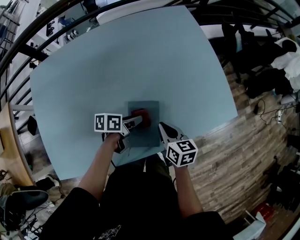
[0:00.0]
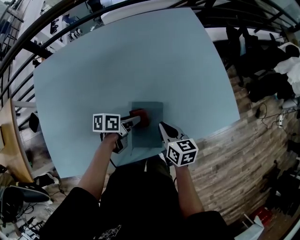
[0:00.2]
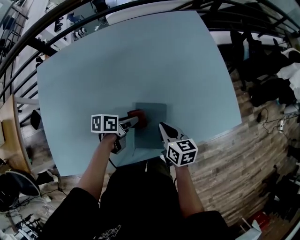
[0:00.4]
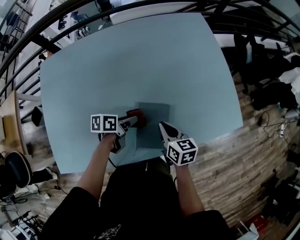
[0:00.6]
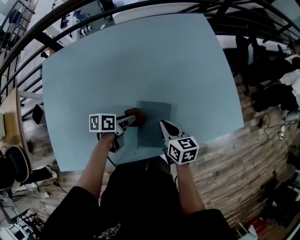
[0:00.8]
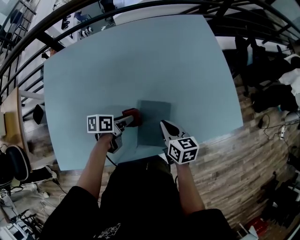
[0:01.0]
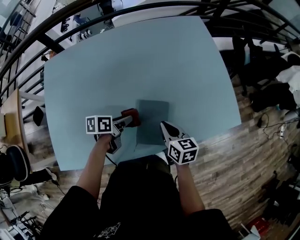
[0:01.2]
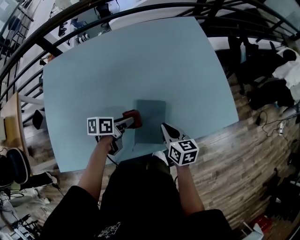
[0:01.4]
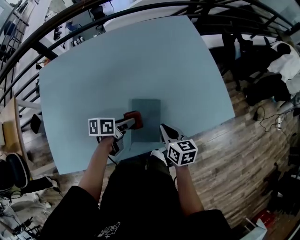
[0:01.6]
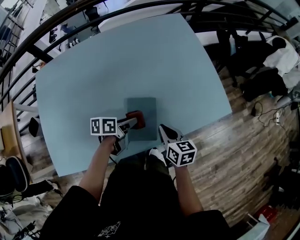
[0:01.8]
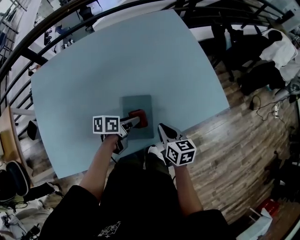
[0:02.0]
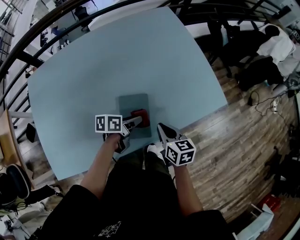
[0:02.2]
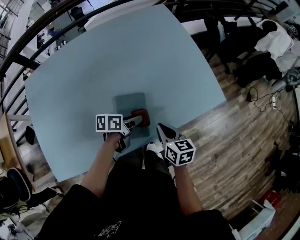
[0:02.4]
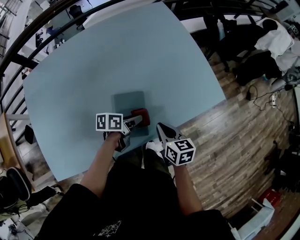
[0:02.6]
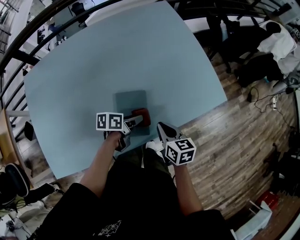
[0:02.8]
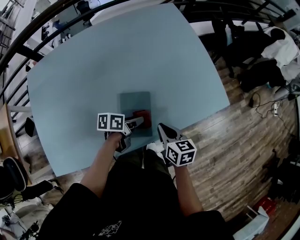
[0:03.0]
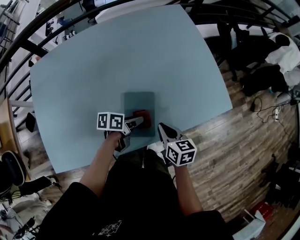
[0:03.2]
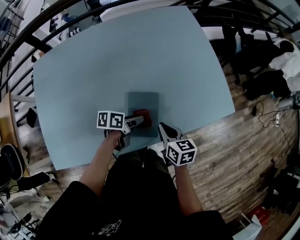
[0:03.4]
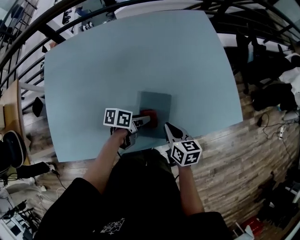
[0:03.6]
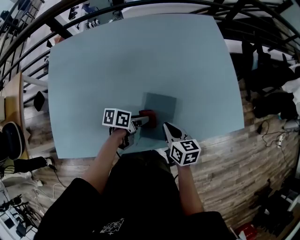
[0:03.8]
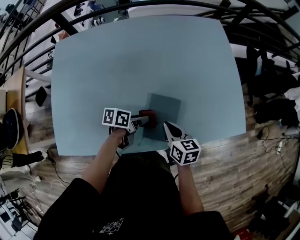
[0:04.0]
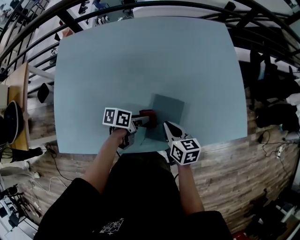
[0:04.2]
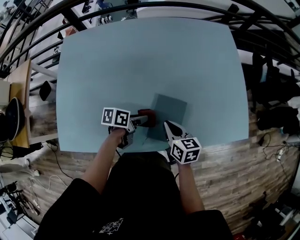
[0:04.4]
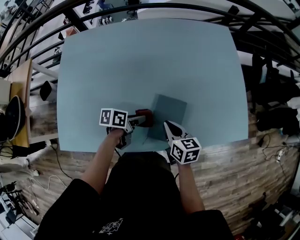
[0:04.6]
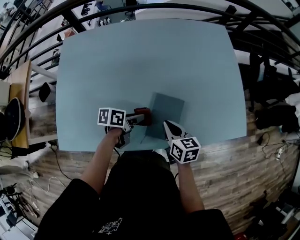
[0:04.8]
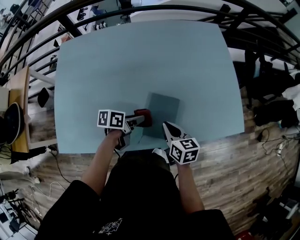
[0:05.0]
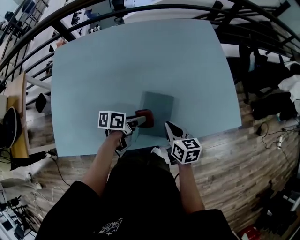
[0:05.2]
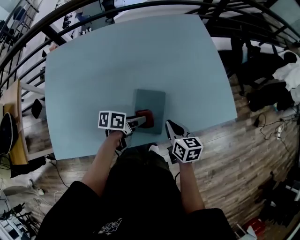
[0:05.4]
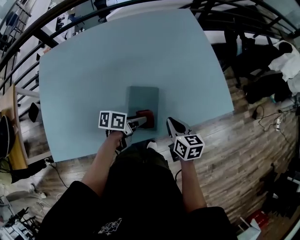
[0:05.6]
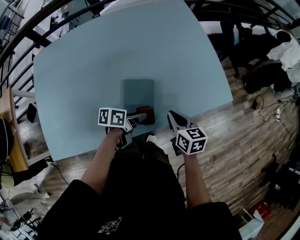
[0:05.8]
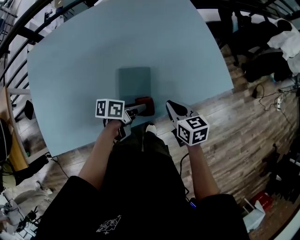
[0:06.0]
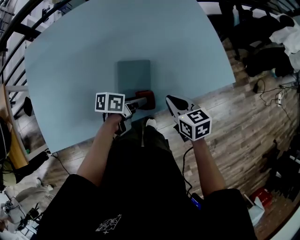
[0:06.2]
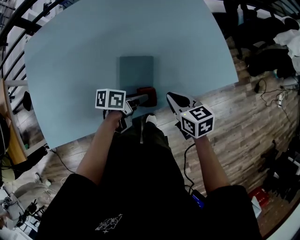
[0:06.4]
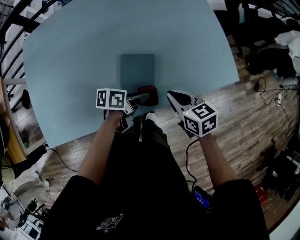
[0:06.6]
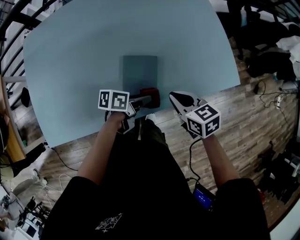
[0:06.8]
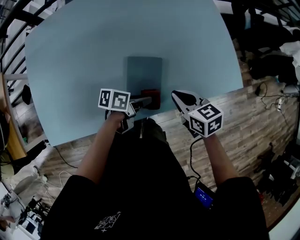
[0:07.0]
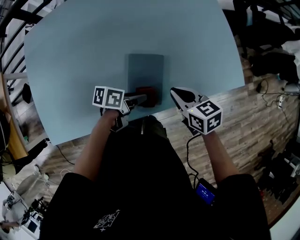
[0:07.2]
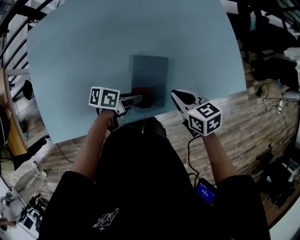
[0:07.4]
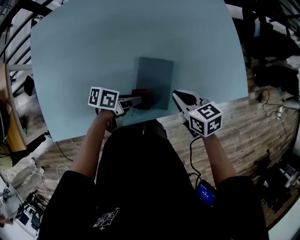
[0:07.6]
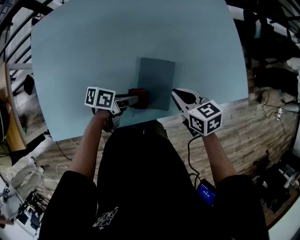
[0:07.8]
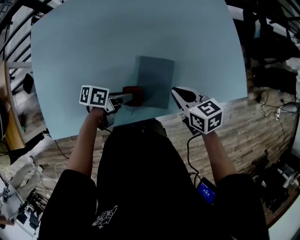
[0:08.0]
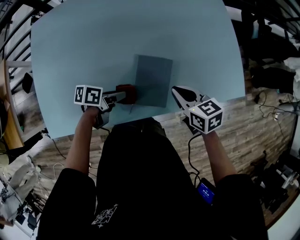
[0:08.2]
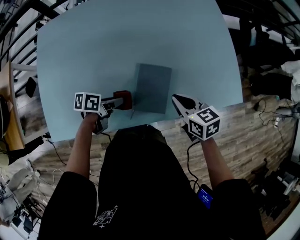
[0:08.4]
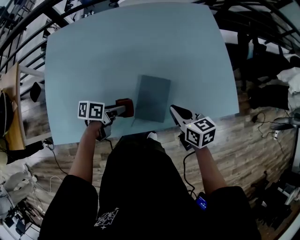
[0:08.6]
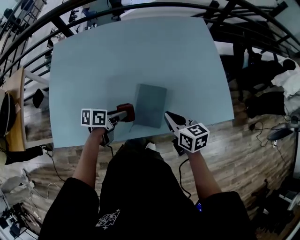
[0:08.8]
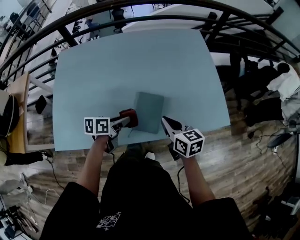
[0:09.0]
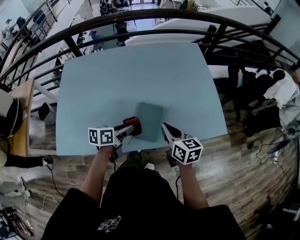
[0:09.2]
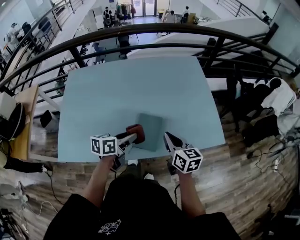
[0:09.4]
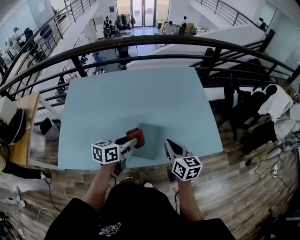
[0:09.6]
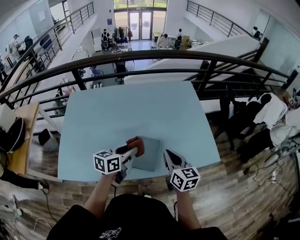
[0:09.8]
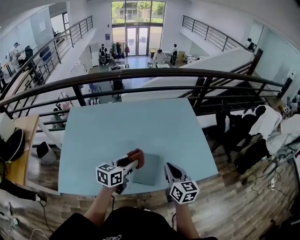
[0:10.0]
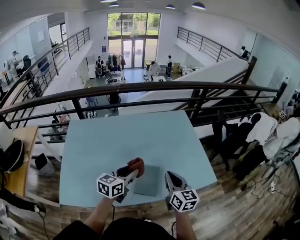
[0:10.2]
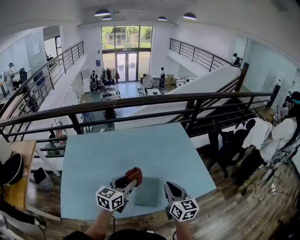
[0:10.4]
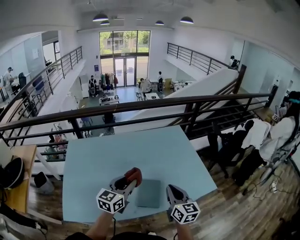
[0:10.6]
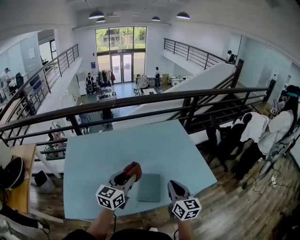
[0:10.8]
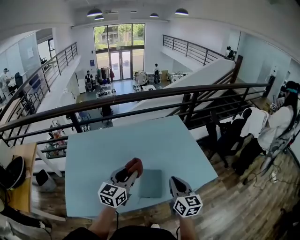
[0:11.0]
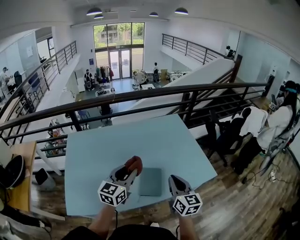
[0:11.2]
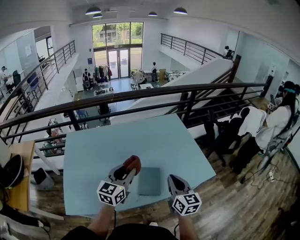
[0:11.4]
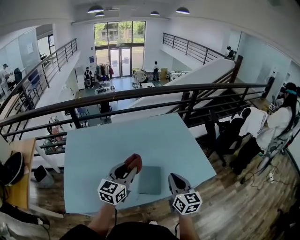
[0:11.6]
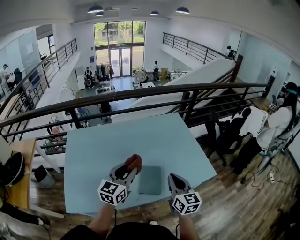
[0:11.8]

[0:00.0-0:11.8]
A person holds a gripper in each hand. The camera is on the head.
0:00.0 to 0:01.4: The left gripper moves to the left, some 5 cm.
0:01.4 to 0:03.0: The right gripper goes about 5 cm to the right; the left gripper is displaced to the right by approximately 10 cm.
0:03.0 to 0:04.4: Both grippers travel together to the left, roughly 15 cm.
0:04.4 to 0:06.0: Both grippers travel together to the right, about 15 cm.
0:06.0 to 0:07.4: The left gripper moves some 5 cm. Meanwhile the right gripper changes place by some 5 cm.
0:07.4 to 0:08.8: The right gripper heads upward, covering about 5 cm. The left gripper moves some 10 cm, and changes its angle by roughly 20 degrees.
0:08.8 to 0:10.4: The grippers both shift upward by some 25 cm. The right gripper swivels approximately 30 degrees, while the left gripper rotates roughly 50 degrees.
0:10.4 to 0:11.8: The left gripper ends up roughly 5 cm from where it was.

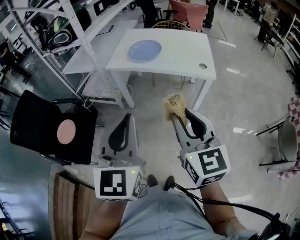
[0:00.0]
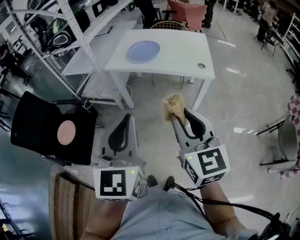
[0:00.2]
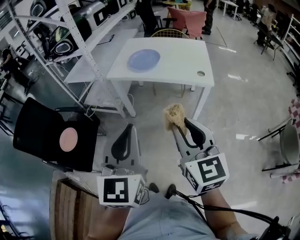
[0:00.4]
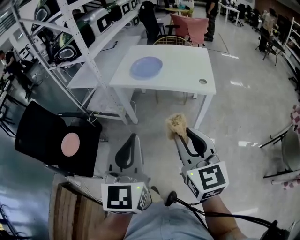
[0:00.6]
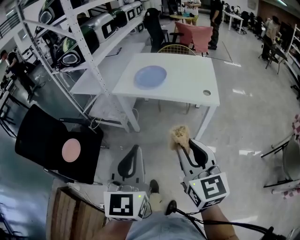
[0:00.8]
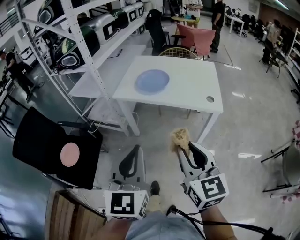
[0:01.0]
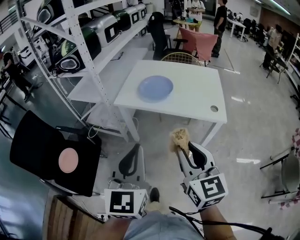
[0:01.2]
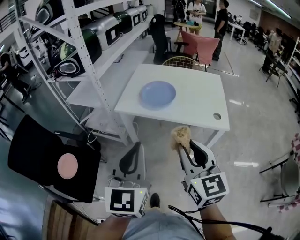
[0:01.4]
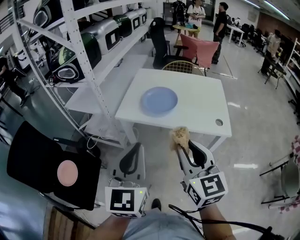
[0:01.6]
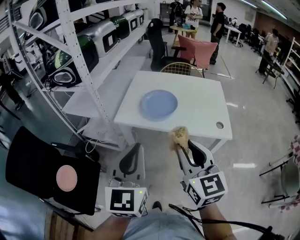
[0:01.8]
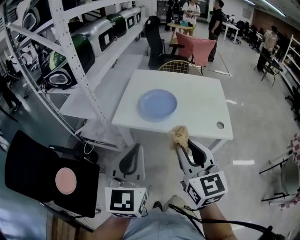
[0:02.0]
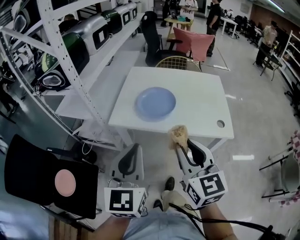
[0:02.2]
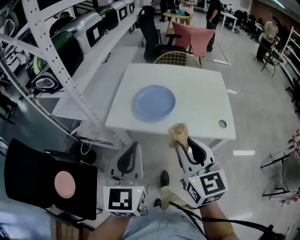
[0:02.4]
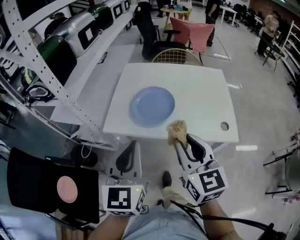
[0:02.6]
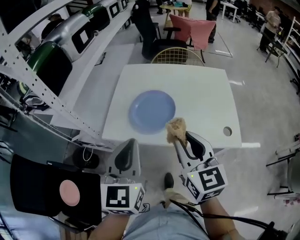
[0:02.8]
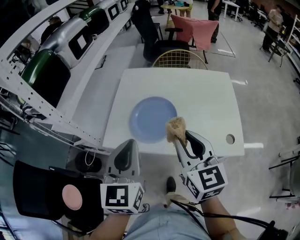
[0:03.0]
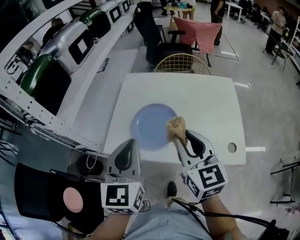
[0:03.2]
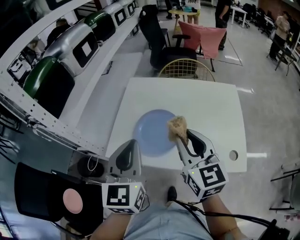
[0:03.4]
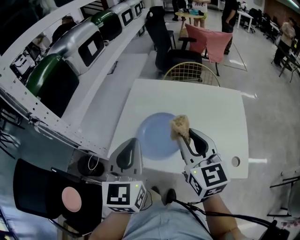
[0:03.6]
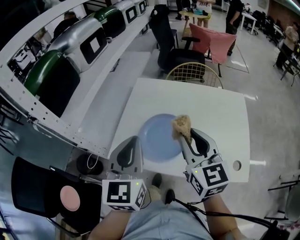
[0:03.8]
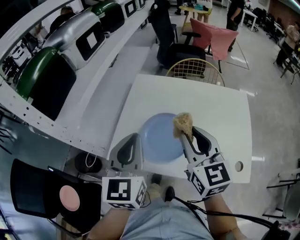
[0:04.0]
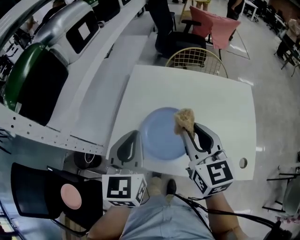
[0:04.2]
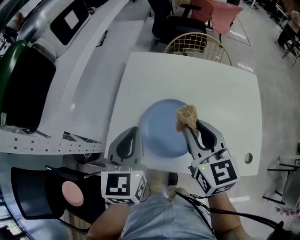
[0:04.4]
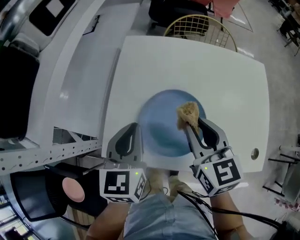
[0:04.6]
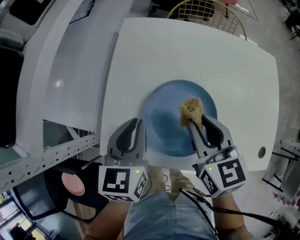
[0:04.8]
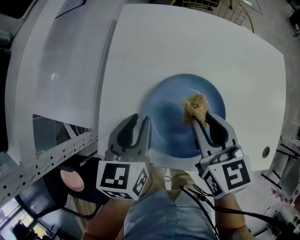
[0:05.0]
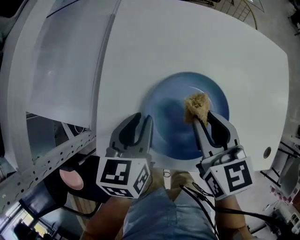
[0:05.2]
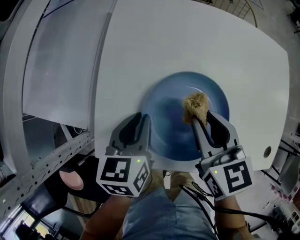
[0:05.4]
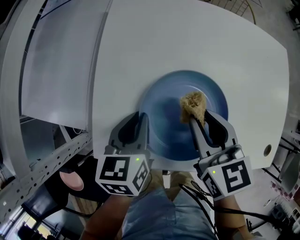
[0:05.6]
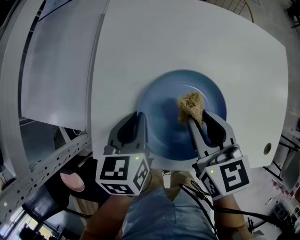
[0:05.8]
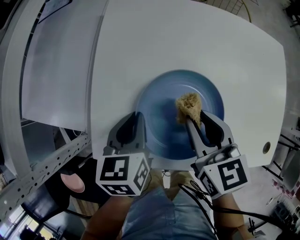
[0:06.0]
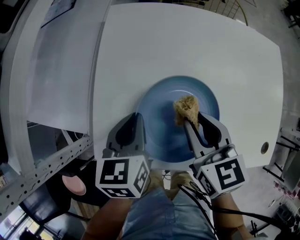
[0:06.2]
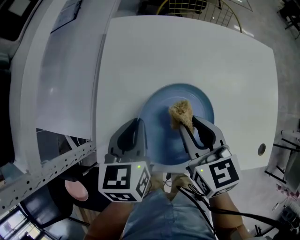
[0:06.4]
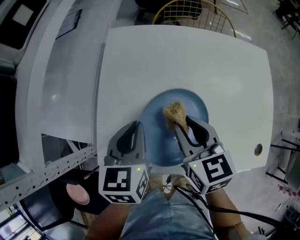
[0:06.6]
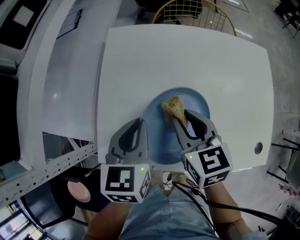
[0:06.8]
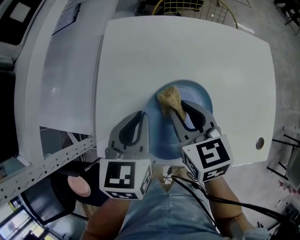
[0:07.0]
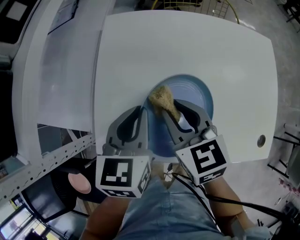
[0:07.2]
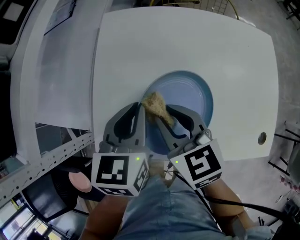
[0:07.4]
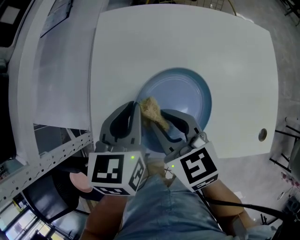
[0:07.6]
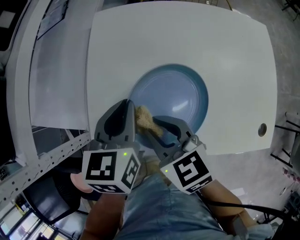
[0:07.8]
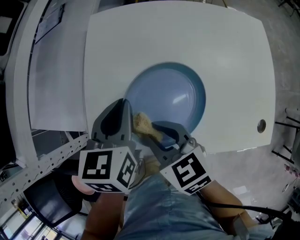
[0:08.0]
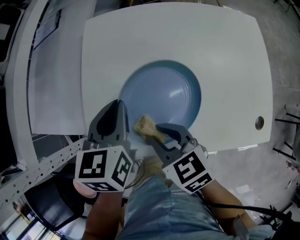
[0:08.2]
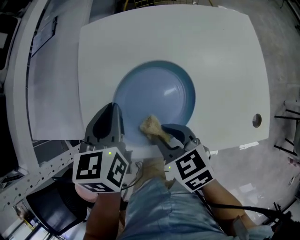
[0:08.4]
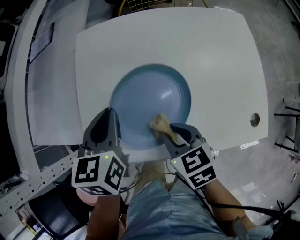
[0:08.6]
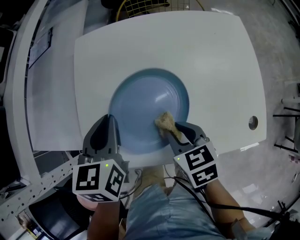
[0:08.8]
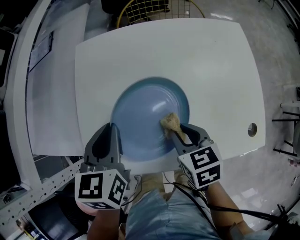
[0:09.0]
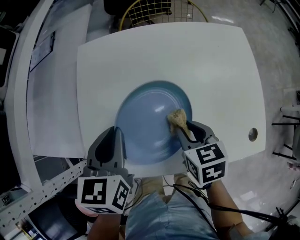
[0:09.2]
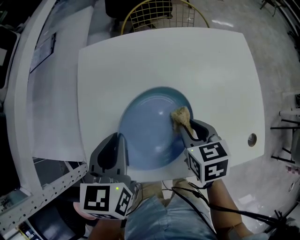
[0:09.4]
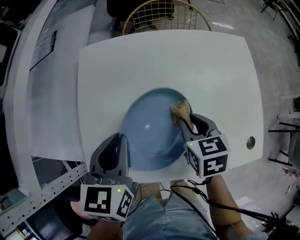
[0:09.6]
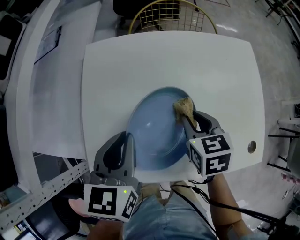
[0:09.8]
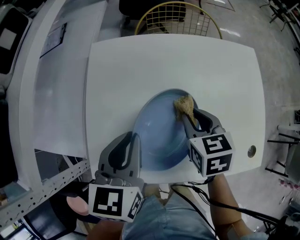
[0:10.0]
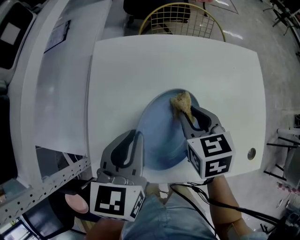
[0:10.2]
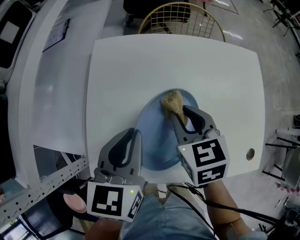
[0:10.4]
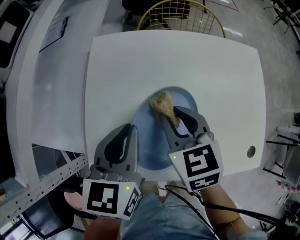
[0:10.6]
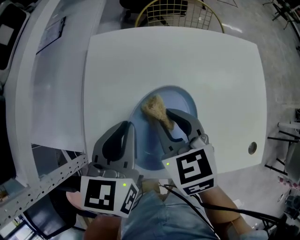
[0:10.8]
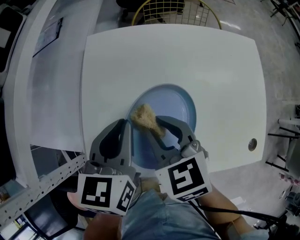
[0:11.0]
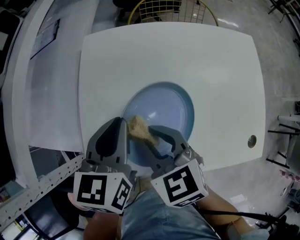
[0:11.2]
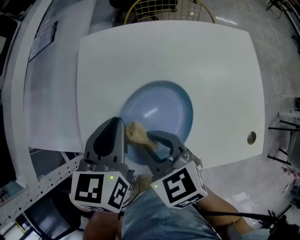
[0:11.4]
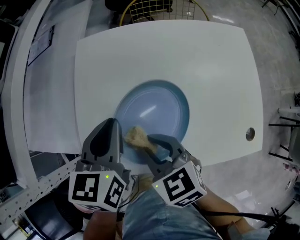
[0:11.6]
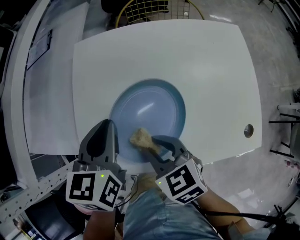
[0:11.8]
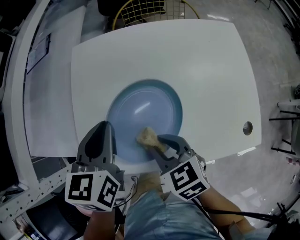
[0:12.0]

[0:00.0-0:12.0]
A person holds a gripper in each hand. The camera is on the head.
0:00.0 to 0:01.6: Both grippers travel together forward, roughly 20 cm.
0:01.6 to 0:03.0: The grippers both shift forward by approximately 25 cm.
0:03.0 to 0:04.4: The left gripper shifts some 20 cm forward and downward; the right gripper heads forward, covering some 15 cm.
0:04.4 to 0:06.0: The two grippers go approximately 15 cm downward. The left gripper changes its angle by about 30 degrees.
0:06.0 to 0:07.6: The left gripper is displaced upward by roughly 10 cm. The right gripper is displaced to the left by approximately 5 cm.
0:07.6 to 0:09.0: The right gripper heads to the right and downward, covering about 15 cm, and rotates some 30 degrees.
0:09.0 to 0:10.4: The right gripper shifts roughly 15 cm forward and upward.
0:10.4 to 0:12.0: The right gripper goes approximately 15 cm backward.
